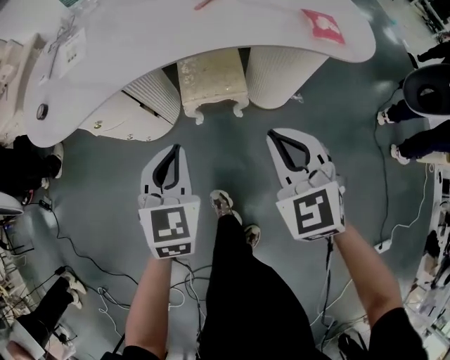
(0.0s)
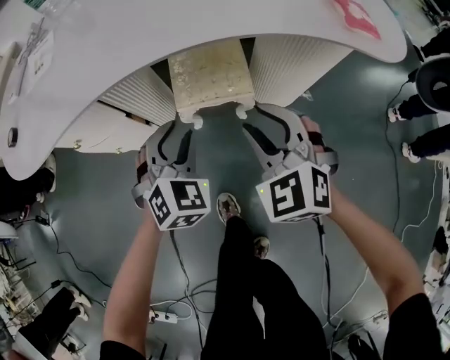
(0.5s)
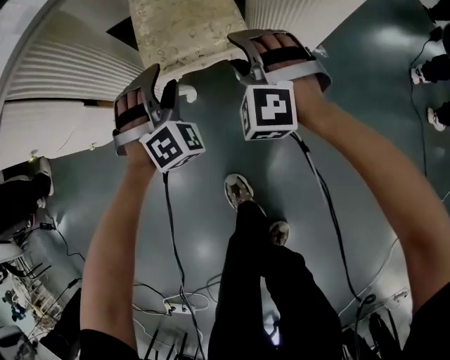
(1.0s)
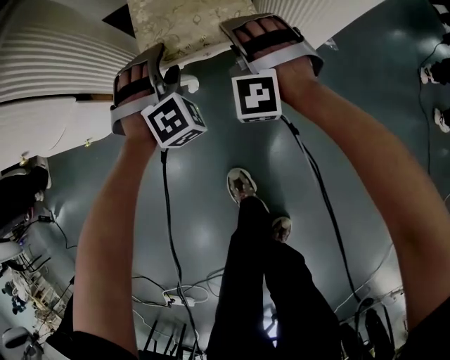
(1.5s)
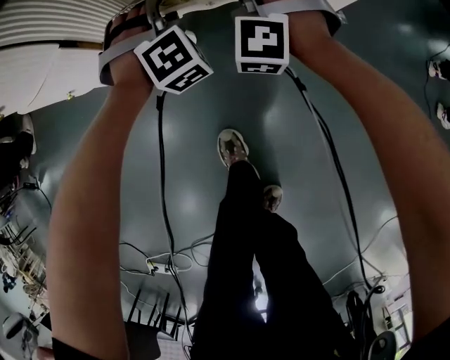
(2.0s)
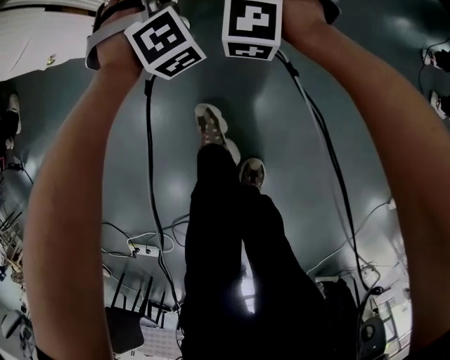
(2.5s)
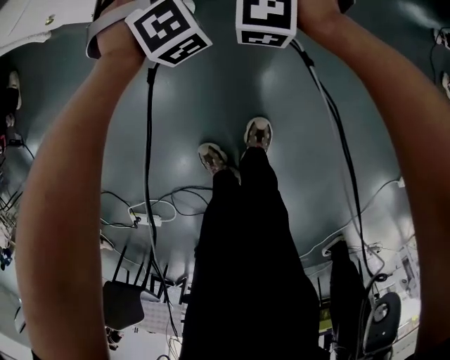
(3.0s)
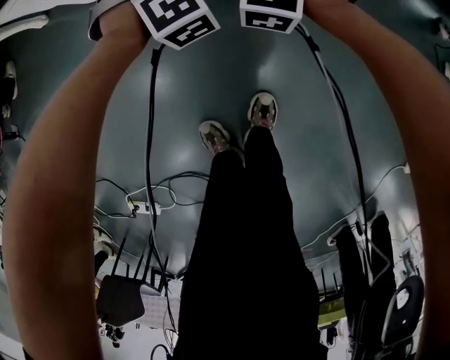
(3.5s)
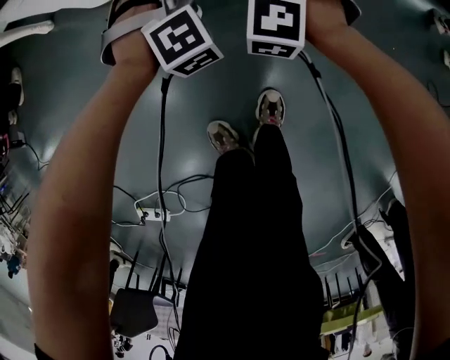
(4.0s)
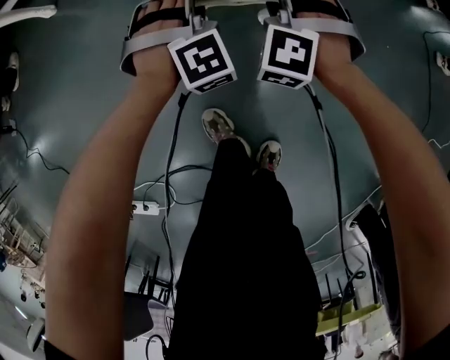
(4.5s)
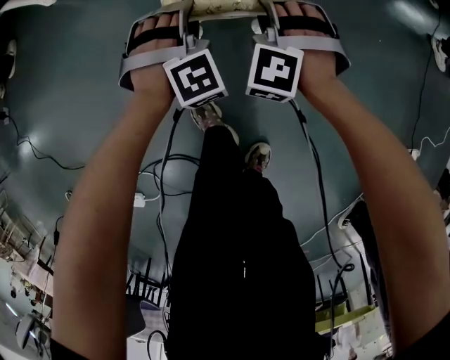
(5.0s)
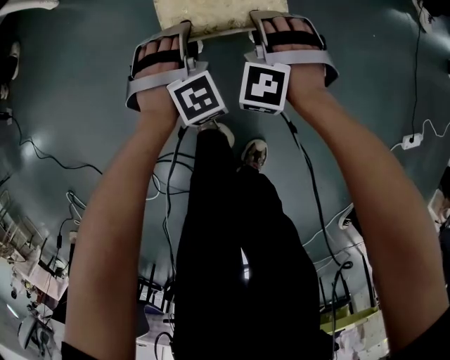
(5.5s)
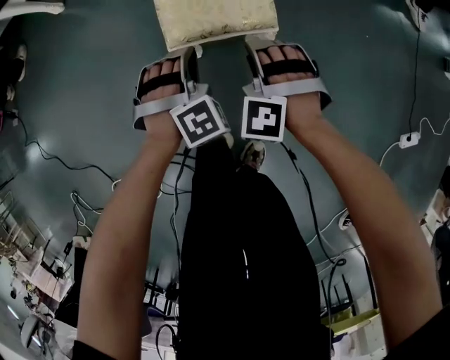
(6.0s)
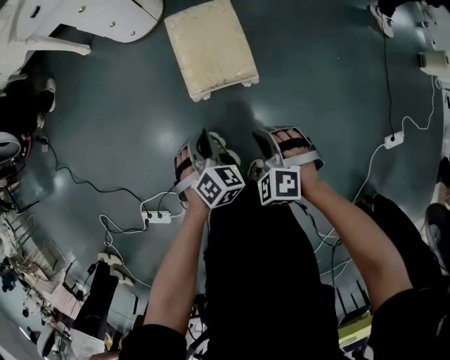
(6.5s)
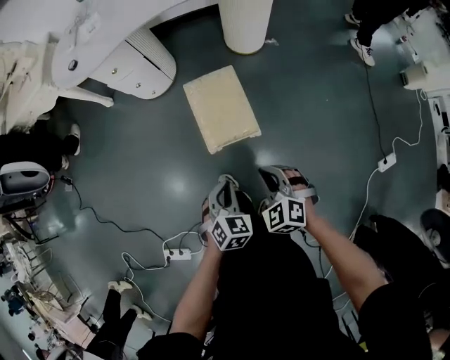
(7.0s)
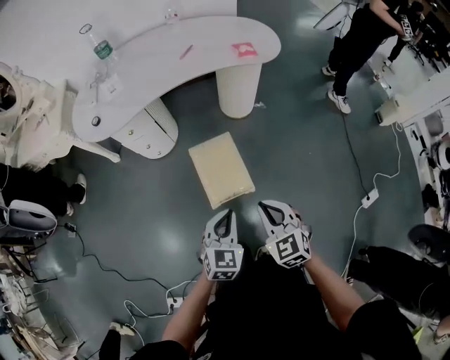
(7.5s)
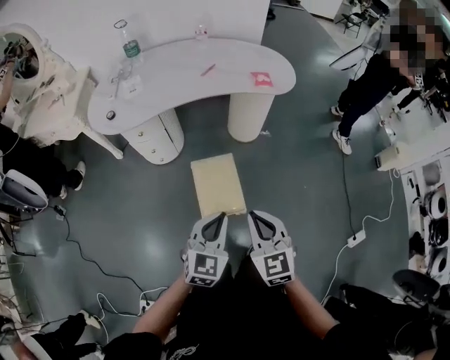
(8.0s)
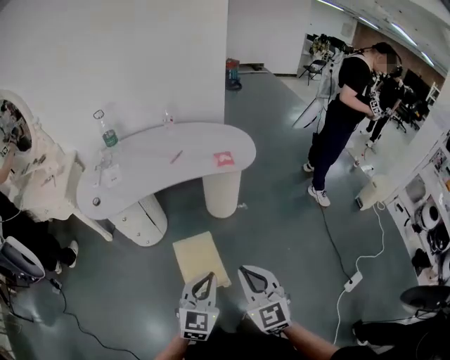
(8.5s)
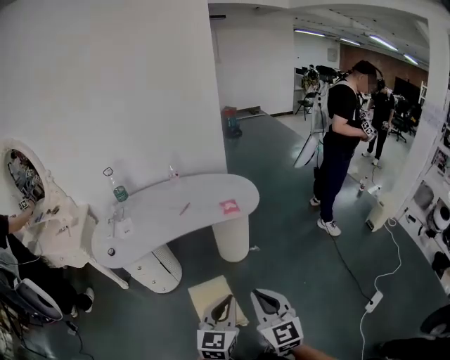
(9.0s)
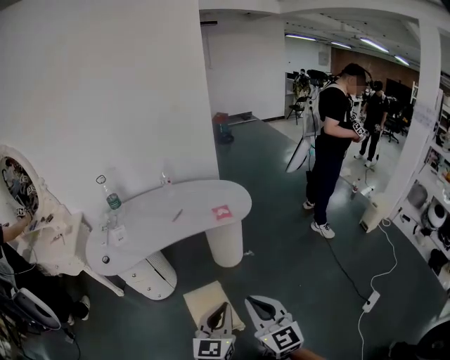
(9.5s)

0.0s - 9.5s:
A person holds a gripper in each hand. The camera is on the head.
0.0s - 2.0s: Both grippers travel together downward and forward, about 40 cm. The right gripper rotates around the line of its fingers by approximately 50 degrees, counterclockwise from behind, and opens; the left gripper rolls clockwise, seen from behind, by approximately 60 degrees, and opens its fingers.
2.0s - 4.0s: The two grippers go about 30 cm backward.
4.0s - 5.5s: The two grippers go about 25 cm backward.
5.5s - 7.5s: The two grippers go about 50 cm upward. The right gripper twists about 60 degrees clockwise, seen from behind, and closes its fingers. The left gripper twists approximately 50 degrees counterclockwise, seen from behind, and closes.
7.5s - 9.5s: The right gripper travels upward and forward by approximately 25 cm, and points its fingers about 30 degrees further upward. Meanwhile the left gripper is displaced upward, forward and to the right by some 25 cm, and turns by about 20 degrees.

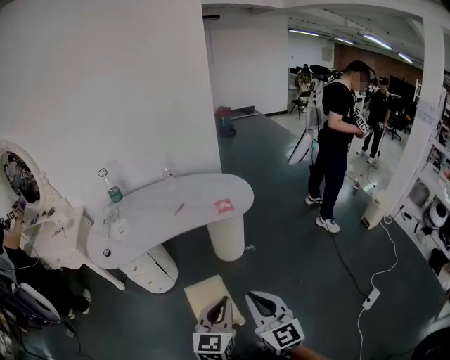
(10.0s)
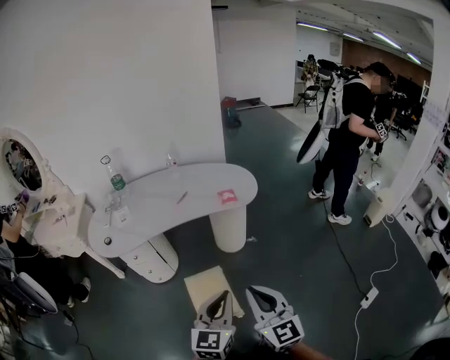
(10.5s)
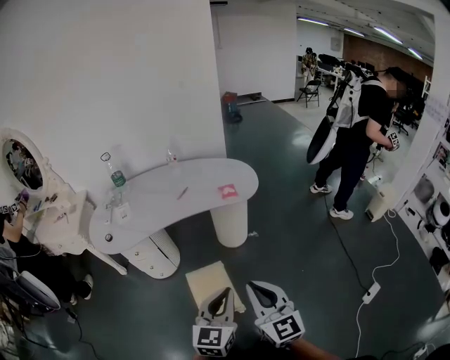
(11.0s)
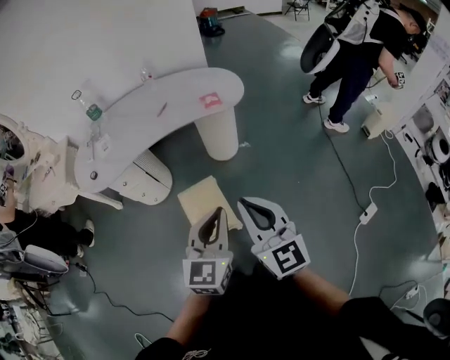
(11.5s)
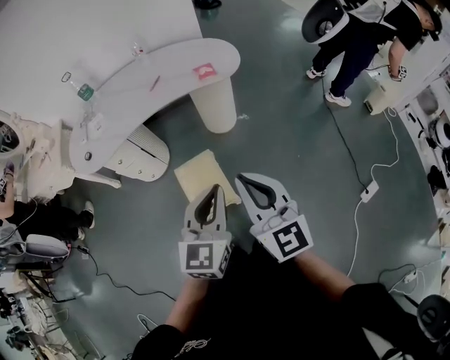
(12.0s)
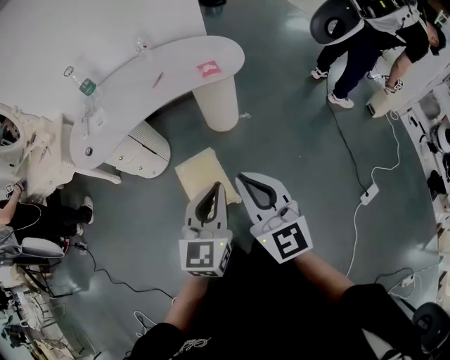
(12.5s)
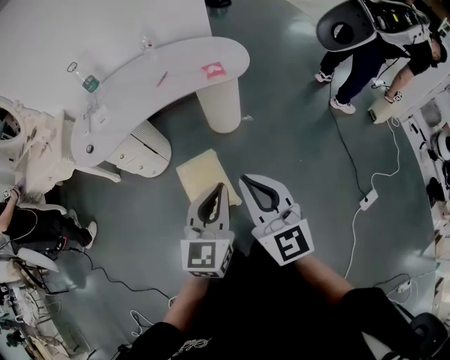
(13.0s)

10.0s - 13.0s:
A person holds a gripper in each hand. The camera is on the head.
10.0s - 11.5s: There are only small adjustments of the grippers.
11.5s - 13.0s: Both grippers stay put.

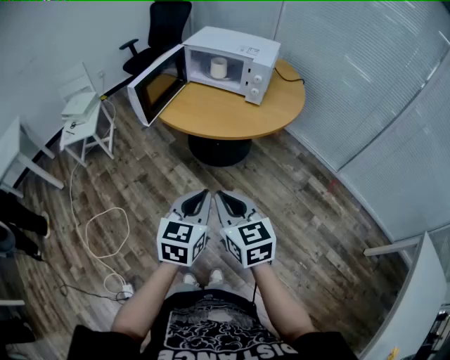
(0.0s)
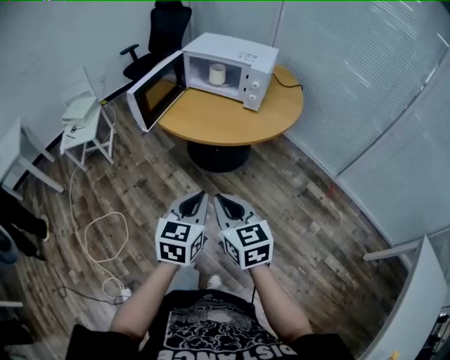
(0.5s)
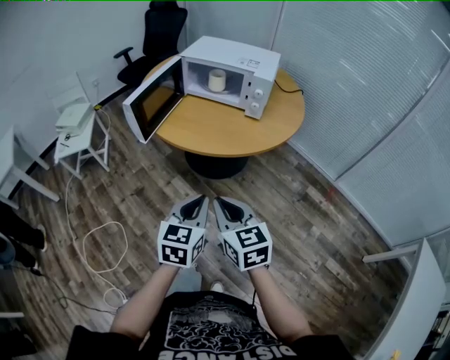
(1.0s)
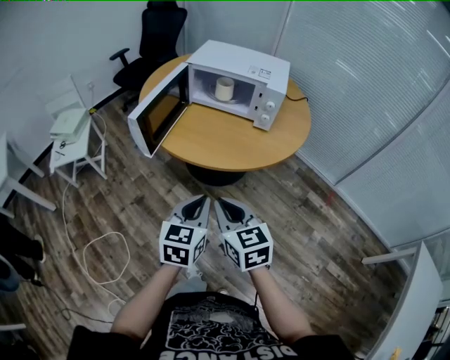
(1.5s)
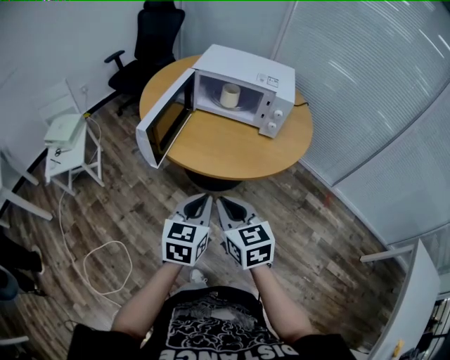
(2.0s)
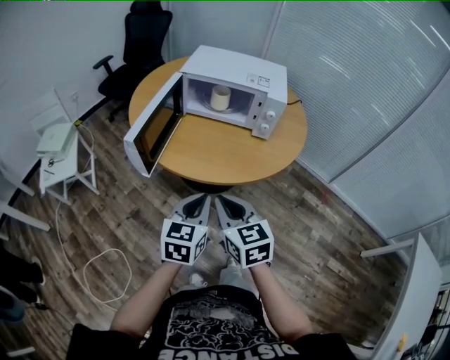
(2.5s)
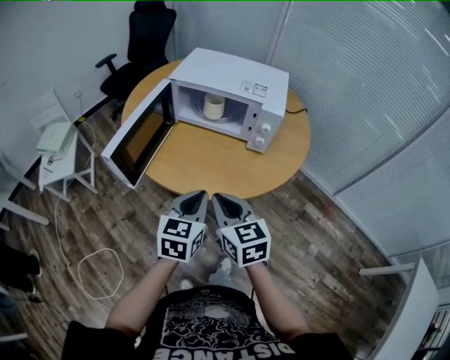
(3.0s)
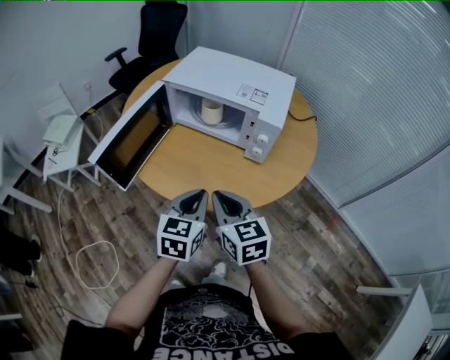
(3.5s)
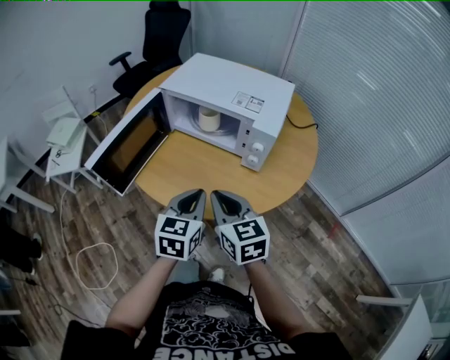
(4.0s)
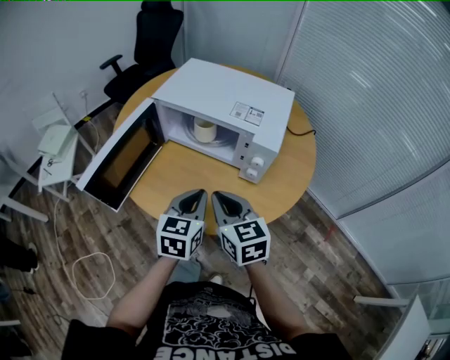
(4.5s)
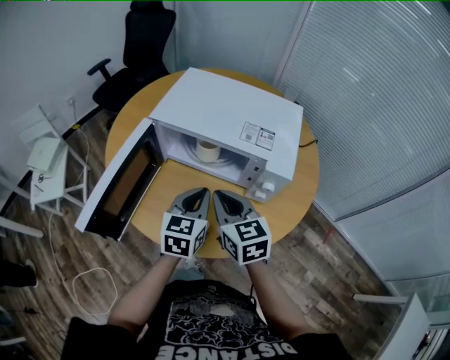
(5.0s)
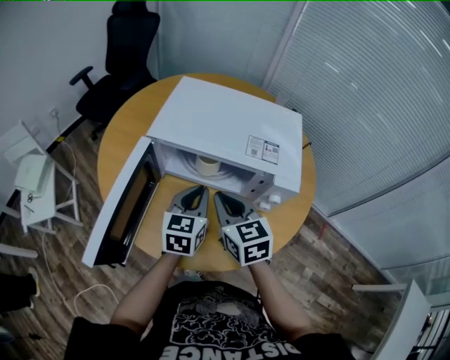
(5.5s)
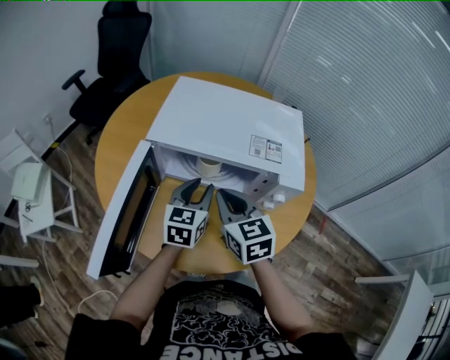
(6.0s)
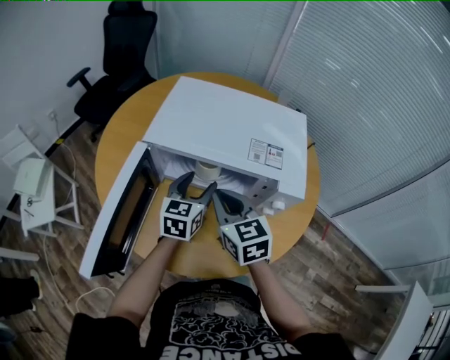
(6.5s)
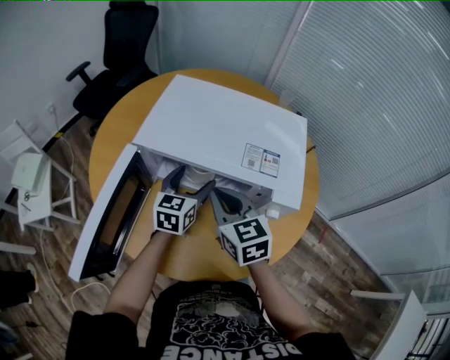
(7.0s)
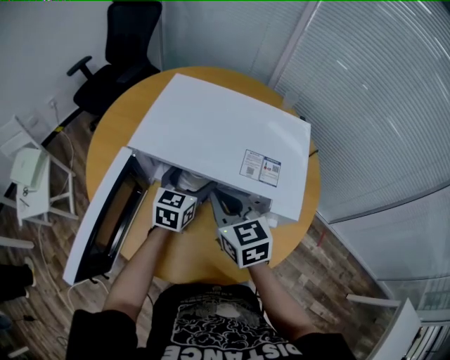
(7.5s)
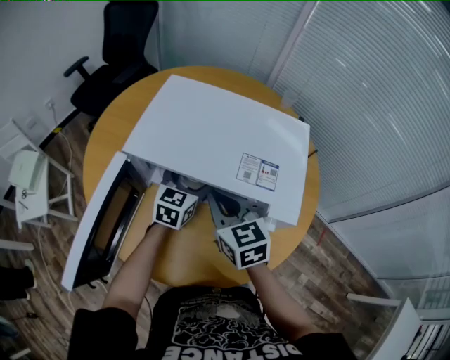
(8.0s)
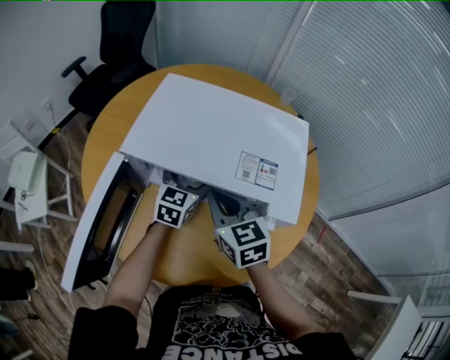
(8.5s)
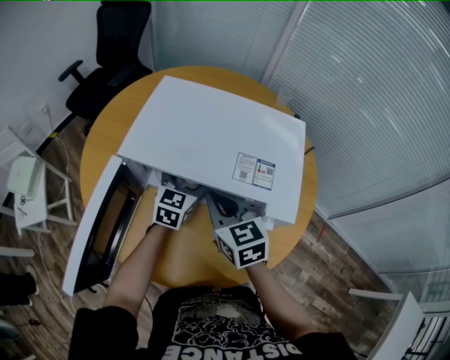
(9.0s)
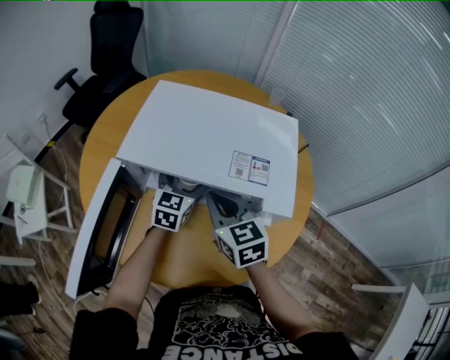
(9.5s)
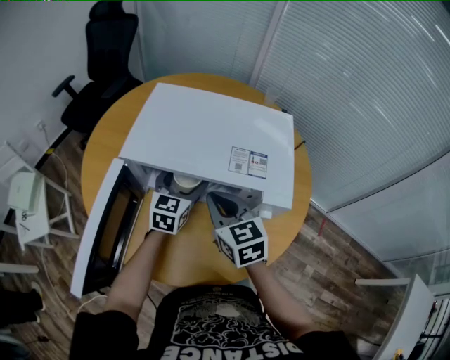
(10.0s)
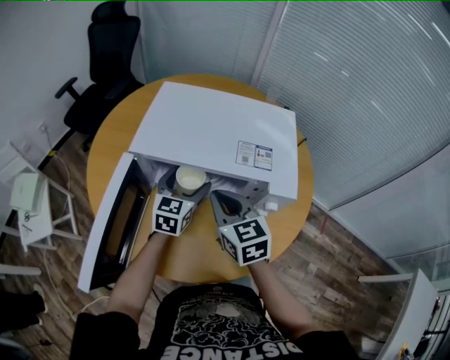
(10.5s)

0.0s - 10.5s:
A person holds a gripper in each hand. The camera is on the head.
0.0s - 2.0s: Both grippers travel together forward and to the left, approximately 20 cm.
2.0s - 4.0s: Both grippers travel together forward and to the right, some 25 cm.
4.0s - 6.5s: Both grippers travel together forward, about 25 cm. The left gripper opens up.
6.5s - 8.5s: The left gripper is displaced forward by roughly 10 cm, and opens. The right gripper shifts approximately 5 cm forward.
8.5s - 10.5s: The left gripper changes place by some 5 cm.

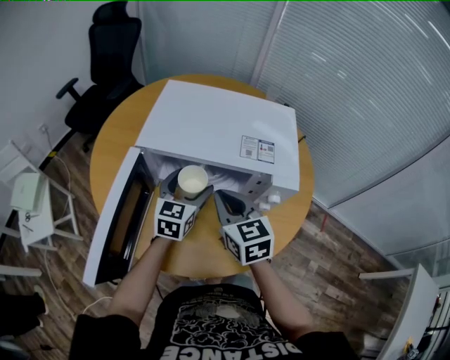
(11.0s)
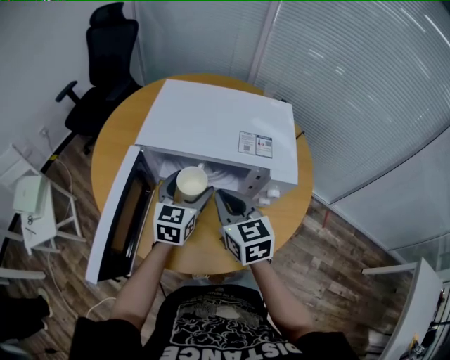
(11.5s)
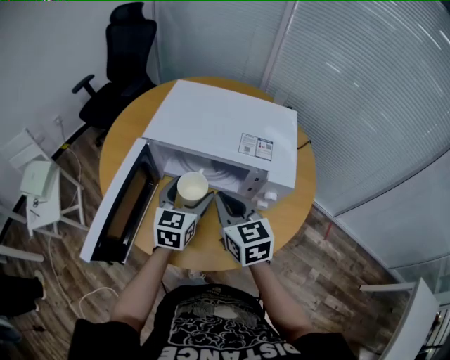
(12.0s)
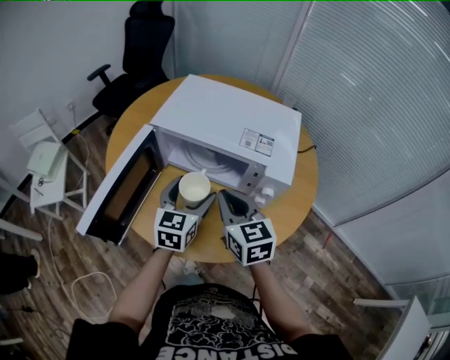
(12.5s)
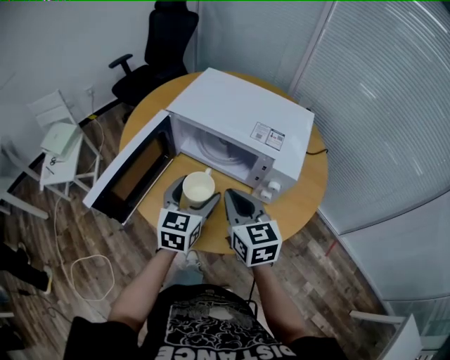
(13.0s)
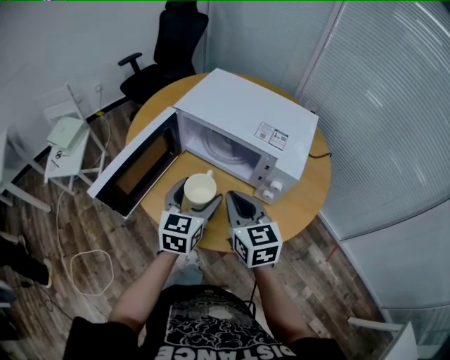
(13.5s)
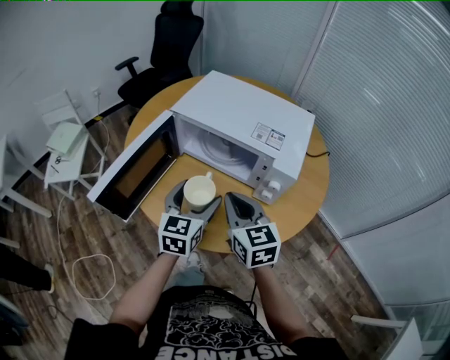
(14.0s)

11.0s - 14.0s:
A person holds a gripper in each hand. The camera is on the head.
11.0s - 12.5s: The left gripper is displaced backward by roughly 10 cm; the right gripper moves backward, some 5 cm.
12.5s - 14.0s: The two grippers go some 5 cm backward.
